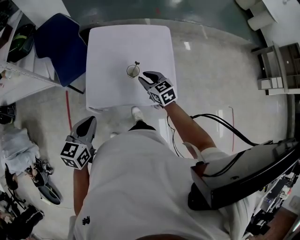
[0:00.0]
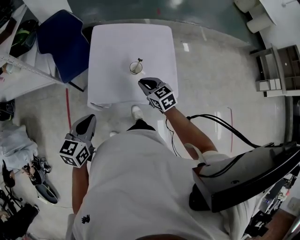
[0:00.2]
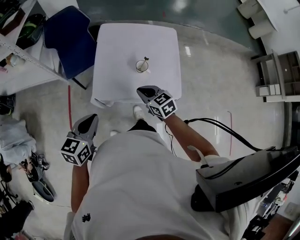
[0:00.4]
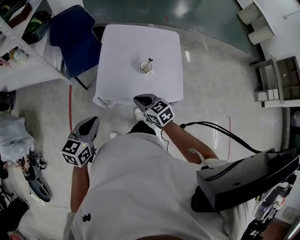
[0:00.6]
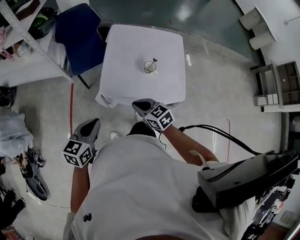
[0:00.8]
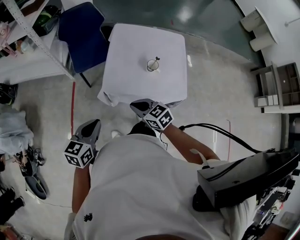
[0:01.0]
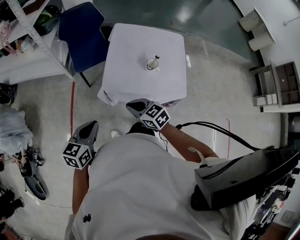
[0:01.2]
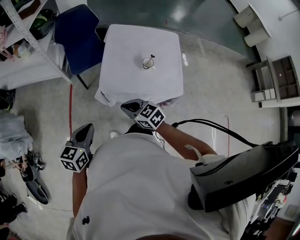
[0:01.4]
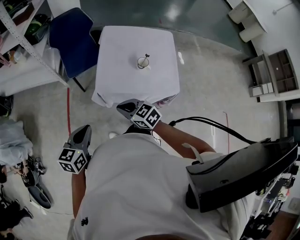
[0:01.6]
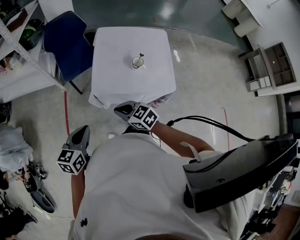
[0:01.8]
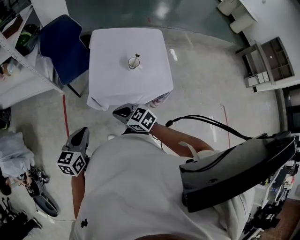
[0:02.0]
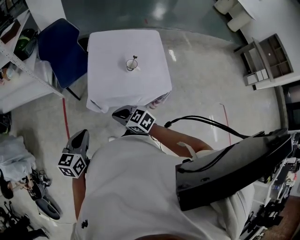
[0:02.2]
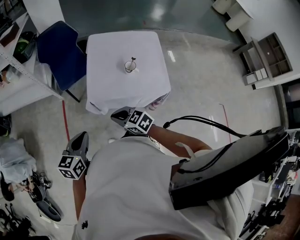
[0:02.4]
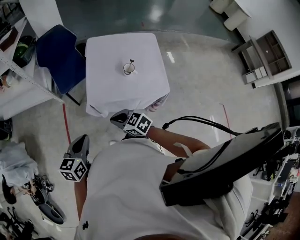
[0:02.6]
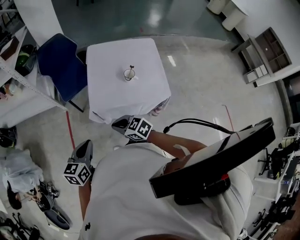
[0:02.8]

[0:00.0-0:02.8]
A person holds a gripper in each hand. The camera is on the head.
0:00.0 to 0:01.4: The right gripper is displaced to the left and backward by about 35 cm, changes its angle by about 20 degrees, and closes its fingers. The left gripper shifts some 20 cm to the left and backward.
0:01.4 to 0:02.8: The grippers move only a little.

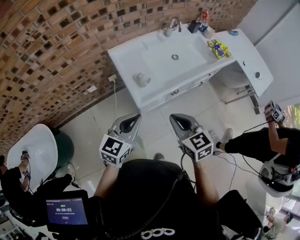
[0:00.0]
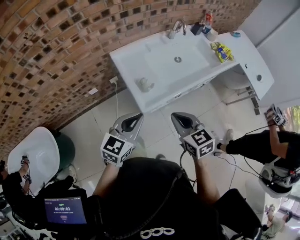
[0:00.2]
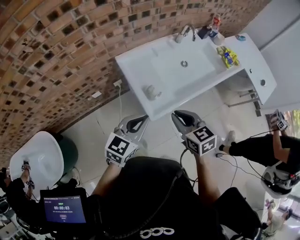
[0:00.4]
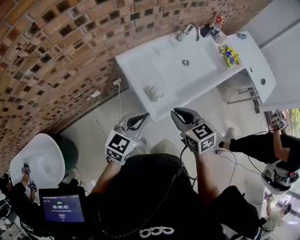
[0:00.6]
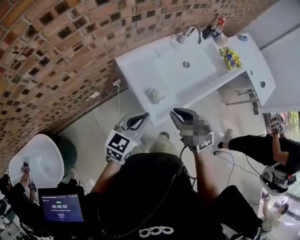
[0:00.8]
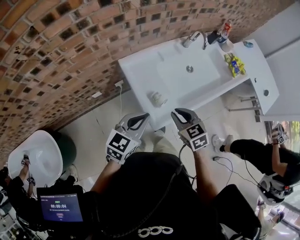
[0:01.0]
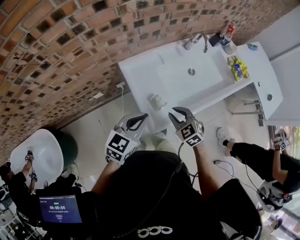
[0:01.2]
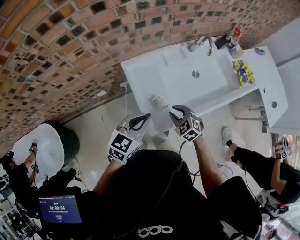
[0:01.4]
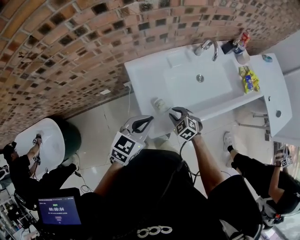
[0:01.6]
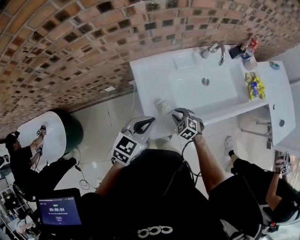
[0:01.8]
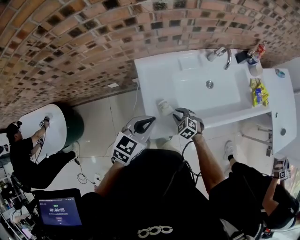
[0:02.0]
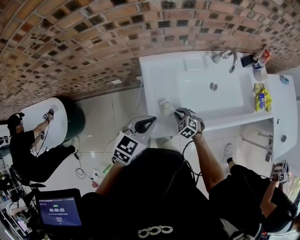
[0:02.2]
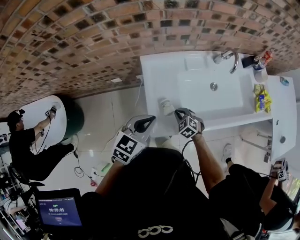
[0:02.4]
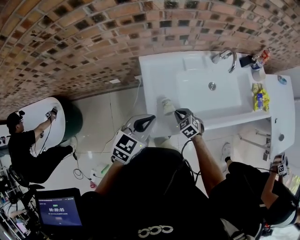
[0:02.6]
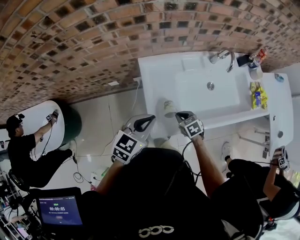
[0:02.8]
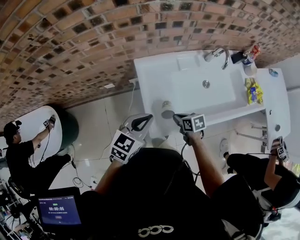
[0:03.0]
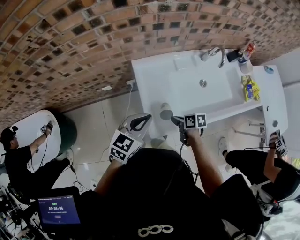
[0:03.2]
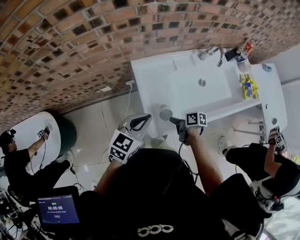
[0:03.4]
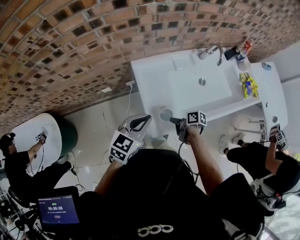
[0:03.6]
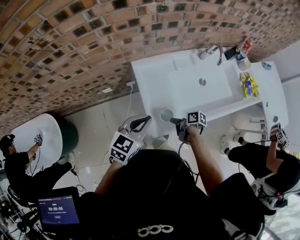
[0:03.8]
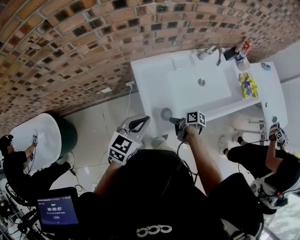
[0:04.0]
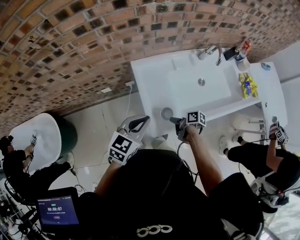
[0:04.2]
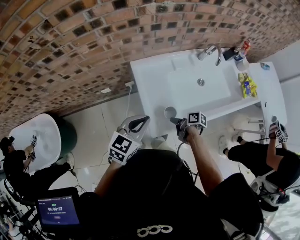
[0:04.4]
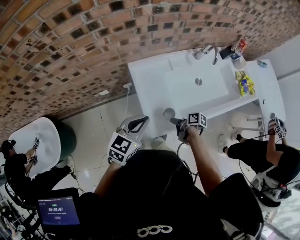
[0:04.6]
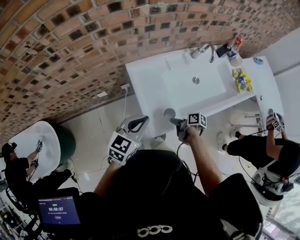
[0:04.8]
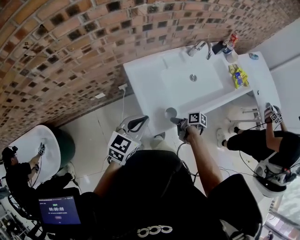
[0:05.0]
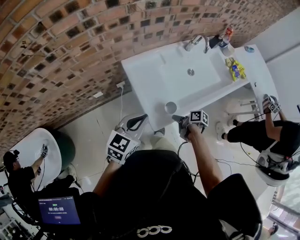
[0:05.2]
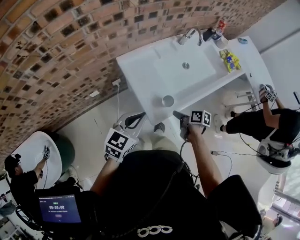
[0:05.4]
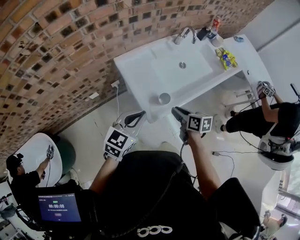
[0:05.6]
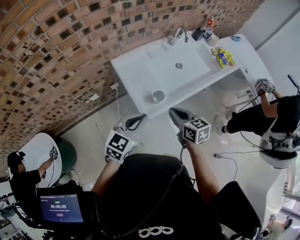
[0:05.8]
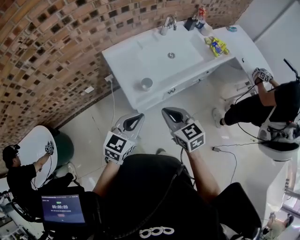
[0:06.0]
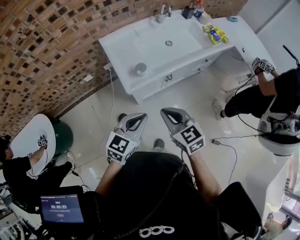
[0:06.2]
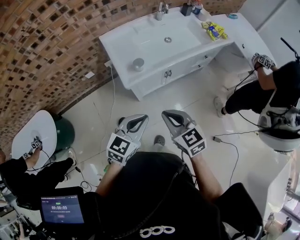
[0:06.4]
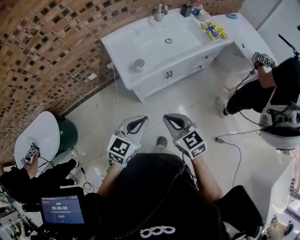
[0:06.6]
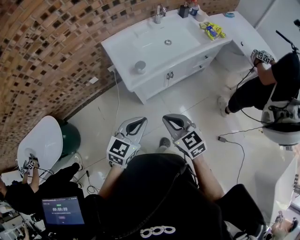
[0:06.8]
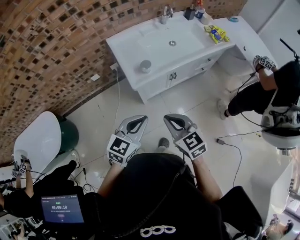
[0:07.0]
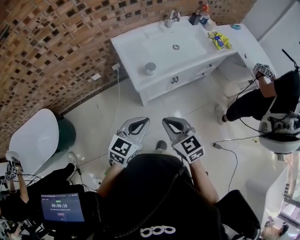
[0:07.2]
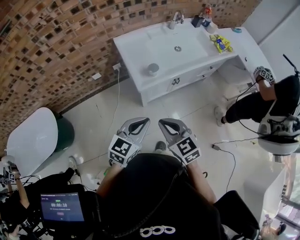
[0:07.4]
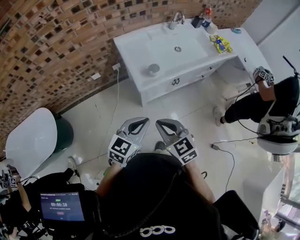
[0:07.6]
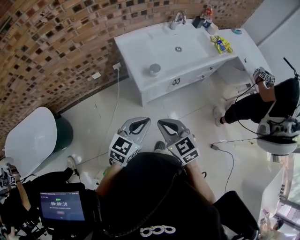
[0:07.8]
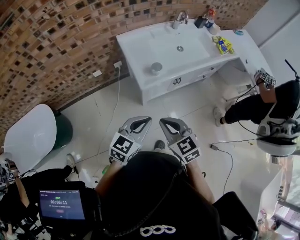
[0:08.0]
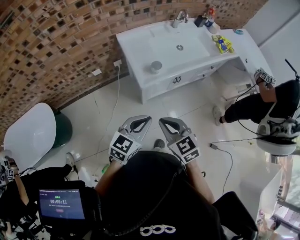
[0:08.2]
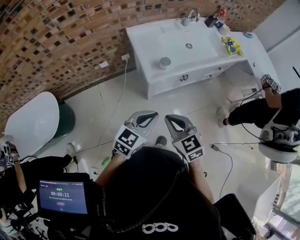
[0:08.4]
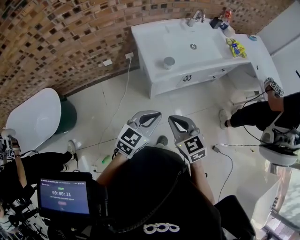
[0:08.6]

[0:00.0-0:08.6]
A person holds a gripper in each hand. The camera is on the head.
0:00.0 to 0:01.4: The right gripper moves forward and downward, approximately 30 cm, and swivels some 40 degrees; the left gripper is displaced forward by about 20 cm.
0:01.4 to 0:02.8: The right gripper moves downward, approximately 5 cm, and turns by about 30 degrees.
0:02.8 to 0:04.4: The right gripper twists roughly 70 degrees clockwise, seen from behind.
0:04.4 to 0:05.8: The left gripper travels backward by about 10 cm. The right gripper travels upward and backward by roughly 25 cm, and rolls counterclockwise, seen from behind, by roughly 50 degrees.
0:05.8 to 0:07.2: The left gripper moves backward and to the right, approximately 20 cm. The right gripper moves backward, roughly 25 cm, and changes its angle by some 30 degrees.
0:07.2 to 0:08.6: The right gripper is displaced to the left by approximately 5 cm.

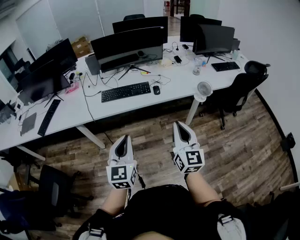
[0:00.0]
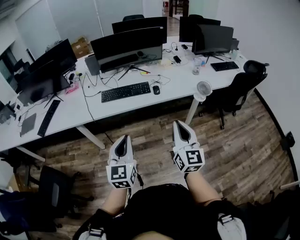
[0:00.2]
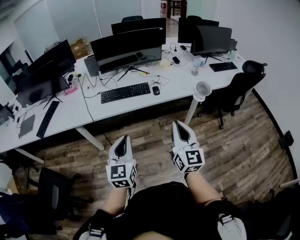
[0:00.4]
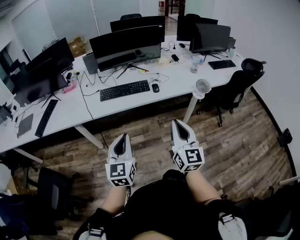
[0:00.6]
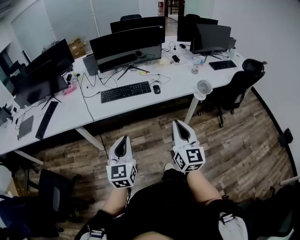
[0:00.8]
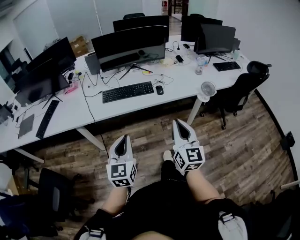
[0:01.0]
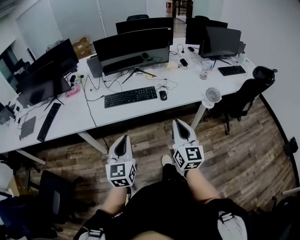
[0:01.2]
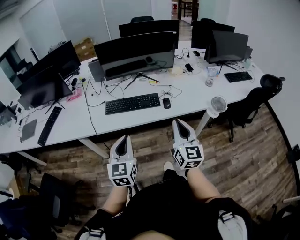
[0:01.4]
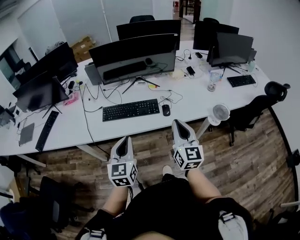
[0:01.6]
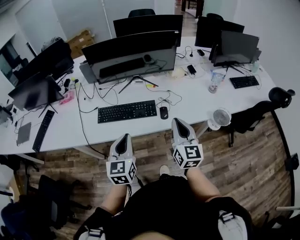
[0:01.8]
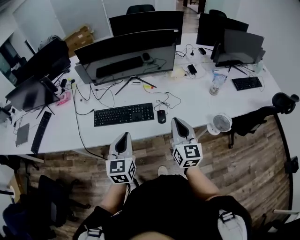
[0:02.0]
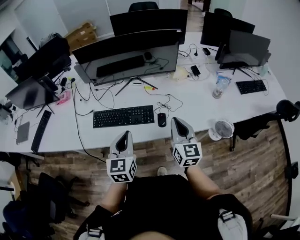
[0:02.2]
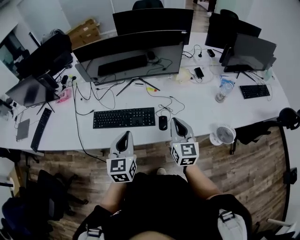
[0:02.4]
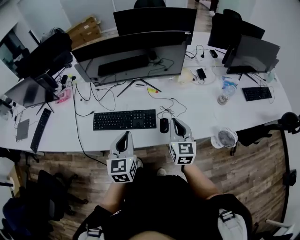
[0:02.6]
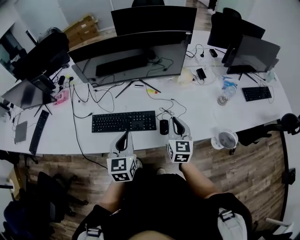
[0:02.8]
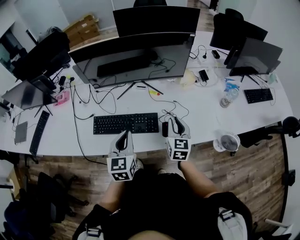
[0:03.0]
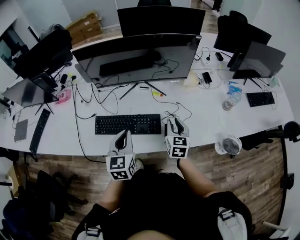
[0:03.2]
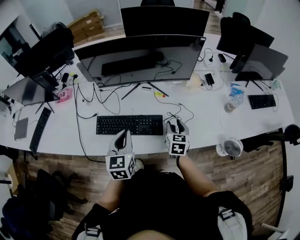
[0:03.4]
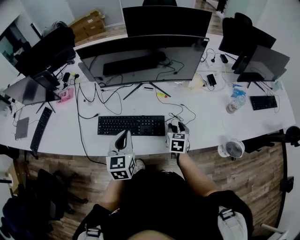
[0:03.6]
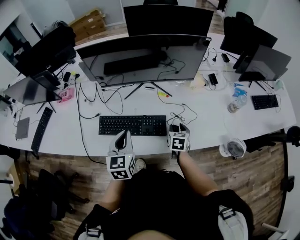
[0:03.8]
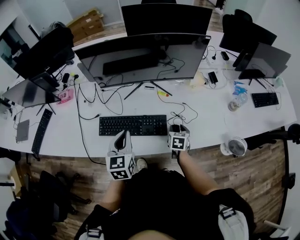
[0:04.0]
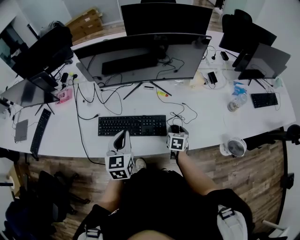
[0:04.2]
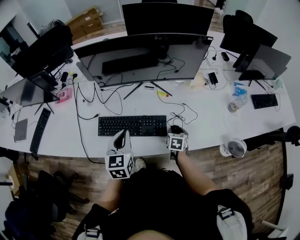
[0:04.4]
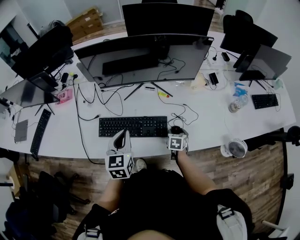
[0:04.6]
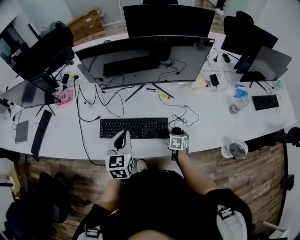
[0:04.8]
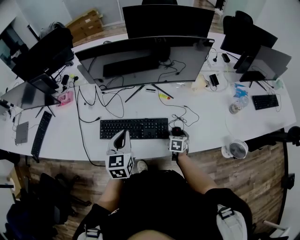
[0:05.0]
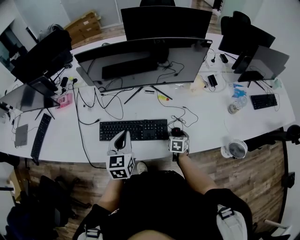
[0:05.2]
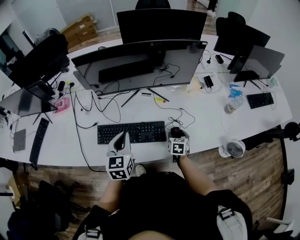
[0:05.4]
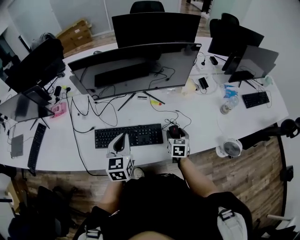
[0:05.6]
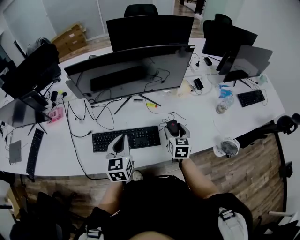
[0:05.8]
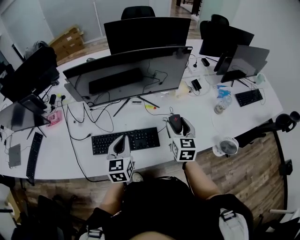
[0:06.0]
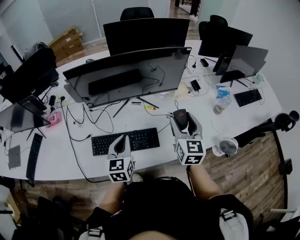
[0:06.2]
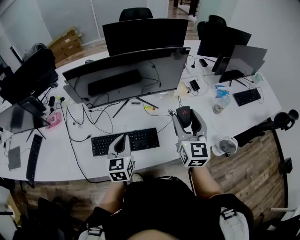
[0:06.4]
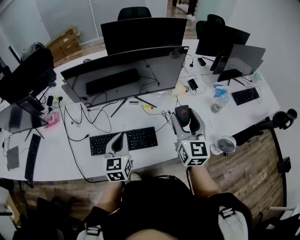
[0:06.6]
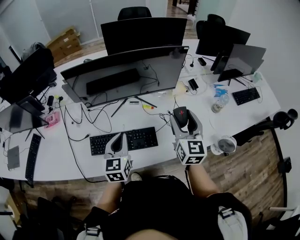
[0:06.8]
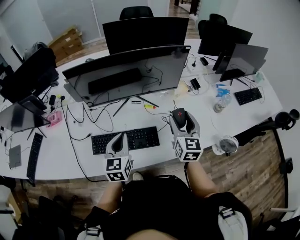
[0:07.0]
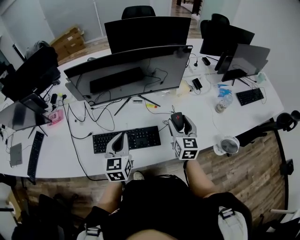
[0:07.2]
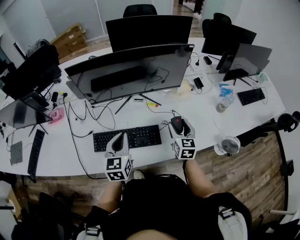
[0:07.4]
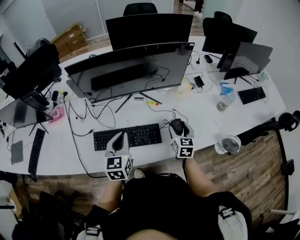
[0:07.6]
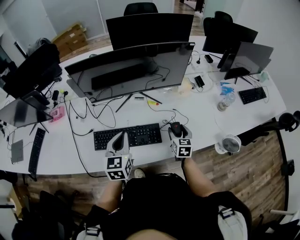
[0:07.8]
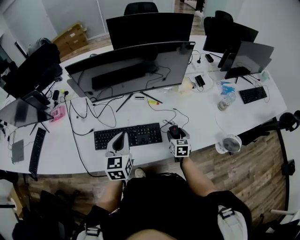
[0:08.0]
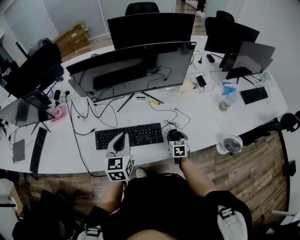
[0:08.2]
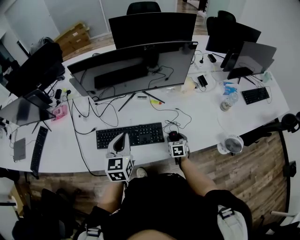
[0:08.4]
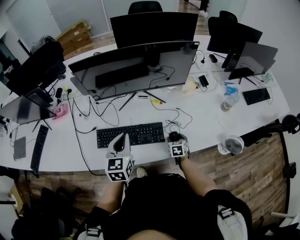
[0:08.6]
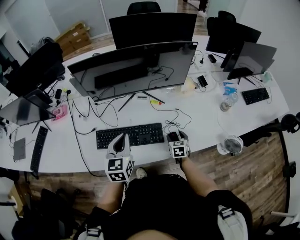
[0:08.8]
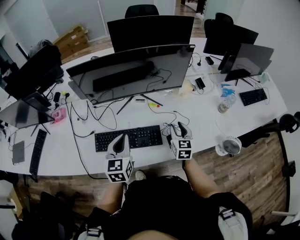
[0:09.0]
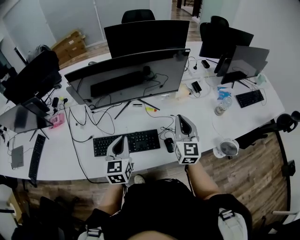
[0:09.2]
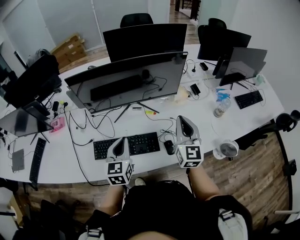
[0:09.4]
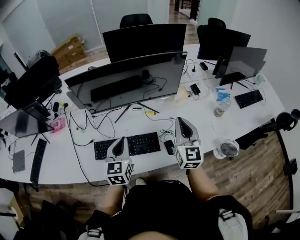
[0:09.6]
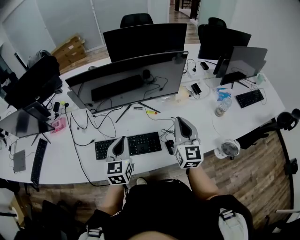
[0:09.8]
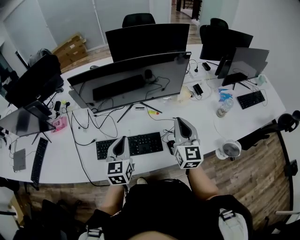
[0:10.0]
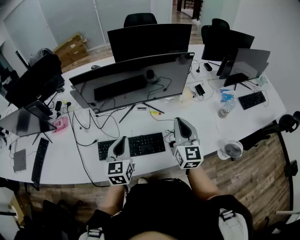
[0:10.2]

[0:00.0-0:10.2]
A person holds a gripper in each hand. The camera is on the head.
0:00.0 to 0:01.4: The two grippers go about 15 cm forward.
0:01.4 to 0:03.0: The grippers both shift forward by about 30 cm. The right gripper rotates approximately 20 degrees.
0:03.0 to 0:04.4: The right gripper travels downward by some 20 cm, angles its fingers downward, by roughly 30 degrees, and opens its fingers, while the left gripper goes about 5 cm to the left.
0:04.4 to 0:05.8: The right gripper is displaced upward by some 15 cm.
0:05.8 to 0:07.2: The right gripper shifts roughly 10 cm upward.
0:07.2 to 0:08.8: The right gripper moves downward, roughly 25 cm, and swivels about 30 degrees.
0:08.8 to 0:10.2: The right gripper shifts about 30 cm upward, tilts its fingers roughly 40 degrees upward, and closes its fingers.

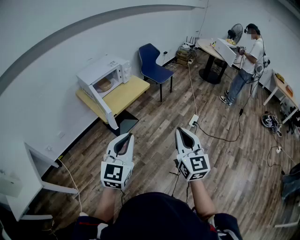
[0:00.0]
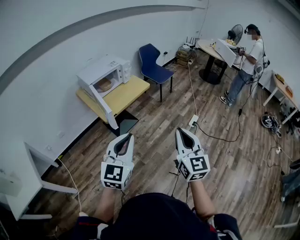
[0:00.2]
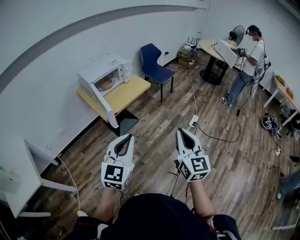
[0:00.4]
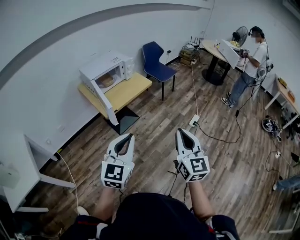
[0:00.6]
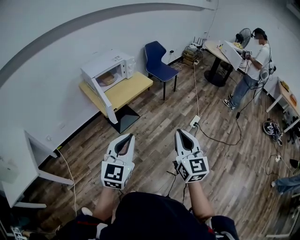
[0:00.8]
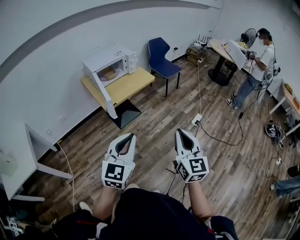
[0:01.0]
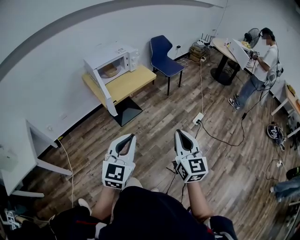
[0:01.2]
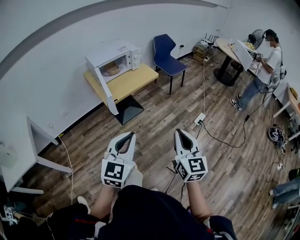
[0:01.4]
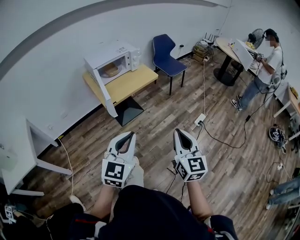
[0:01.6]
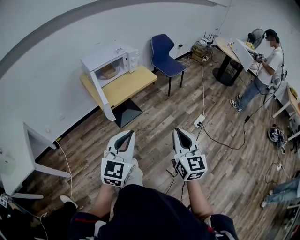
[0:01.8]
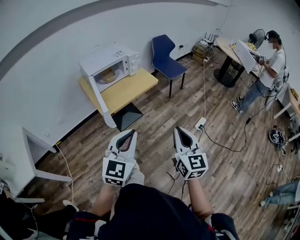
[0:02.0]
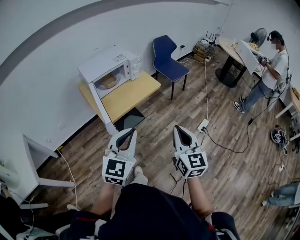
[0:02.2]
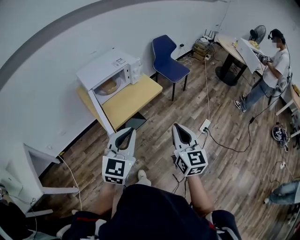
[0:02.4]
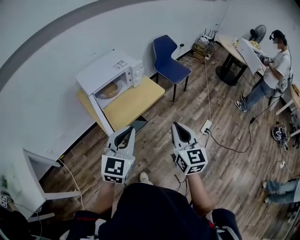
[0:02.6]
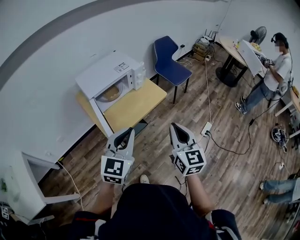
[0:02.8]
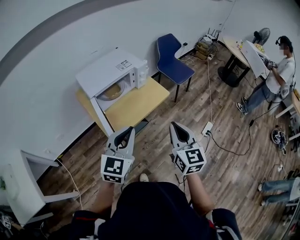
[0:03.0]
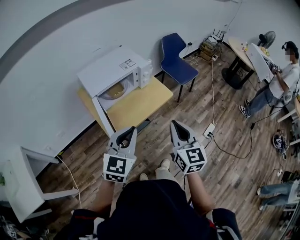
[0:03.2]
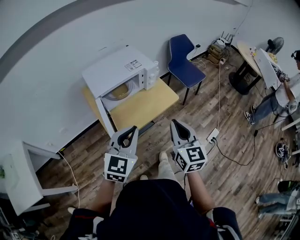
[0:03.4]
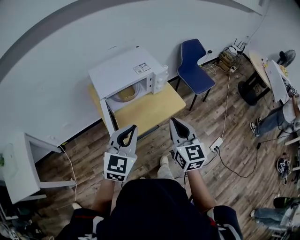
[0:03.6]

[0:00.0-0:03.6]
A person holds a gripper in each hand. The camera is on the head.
0:00.0 to 0:01.8: The left gripper shifts by roughly 10 cm, while the right gripper goes approximately 10 cm forward and downward.
0:01.8 to 0:03.6: The two grippers travel together, forward and to the left, roughly 40 cm.
